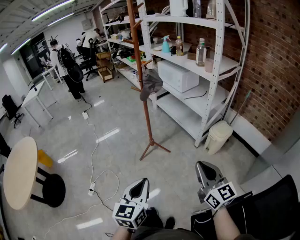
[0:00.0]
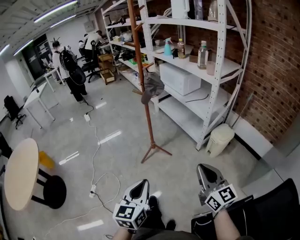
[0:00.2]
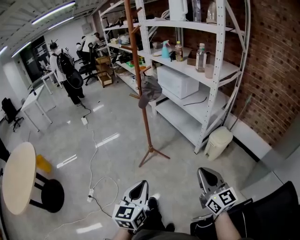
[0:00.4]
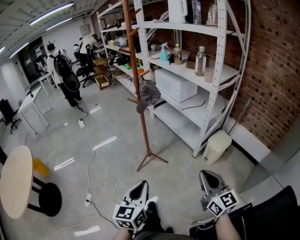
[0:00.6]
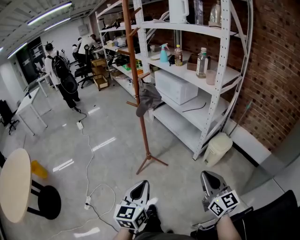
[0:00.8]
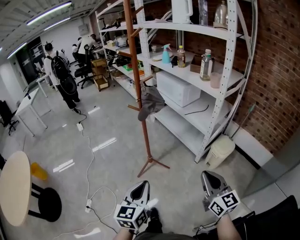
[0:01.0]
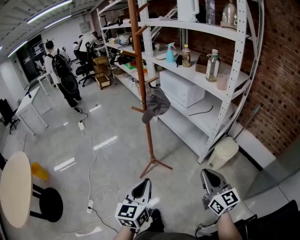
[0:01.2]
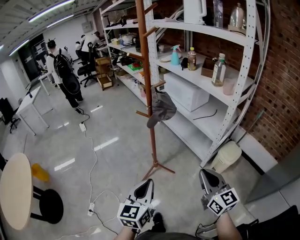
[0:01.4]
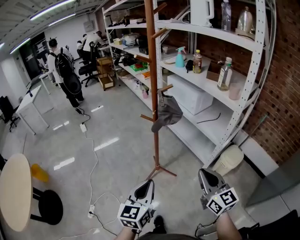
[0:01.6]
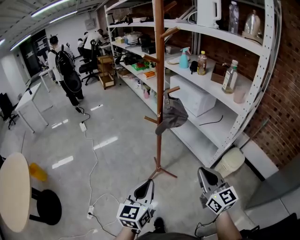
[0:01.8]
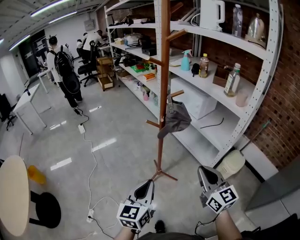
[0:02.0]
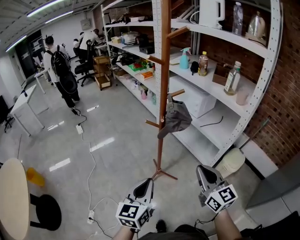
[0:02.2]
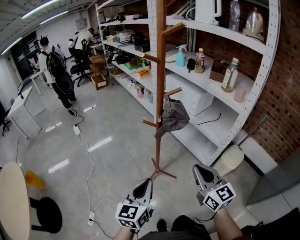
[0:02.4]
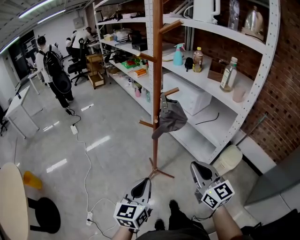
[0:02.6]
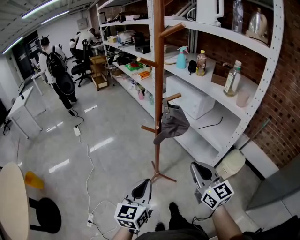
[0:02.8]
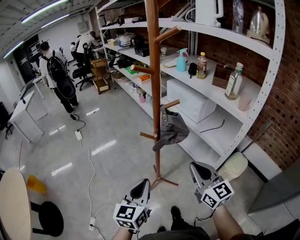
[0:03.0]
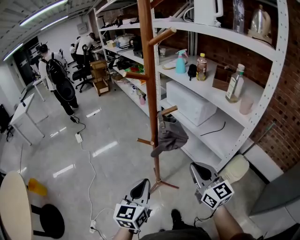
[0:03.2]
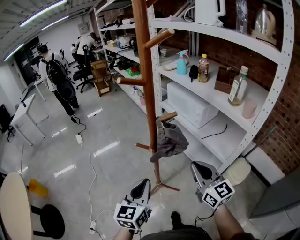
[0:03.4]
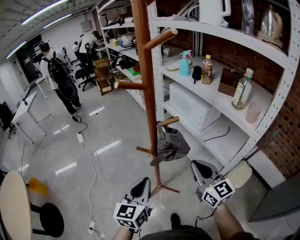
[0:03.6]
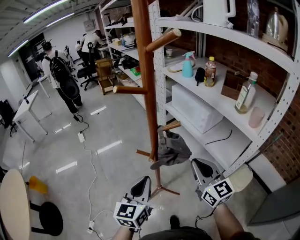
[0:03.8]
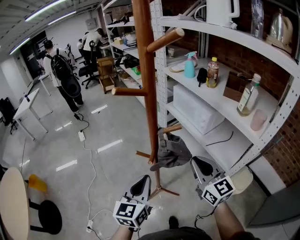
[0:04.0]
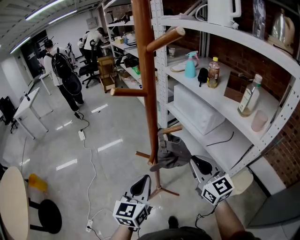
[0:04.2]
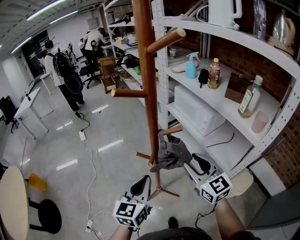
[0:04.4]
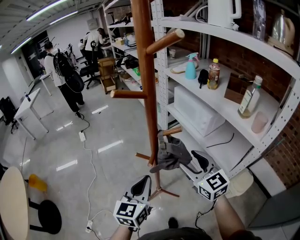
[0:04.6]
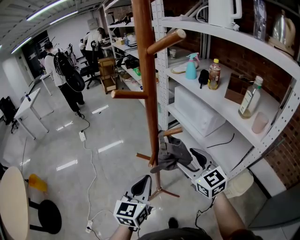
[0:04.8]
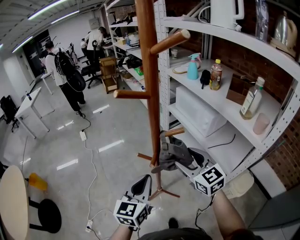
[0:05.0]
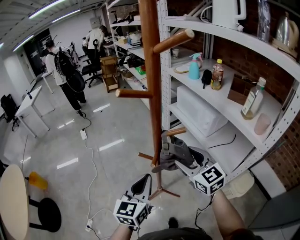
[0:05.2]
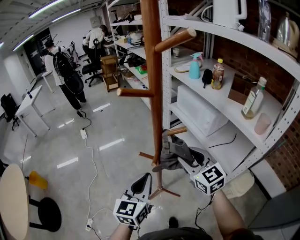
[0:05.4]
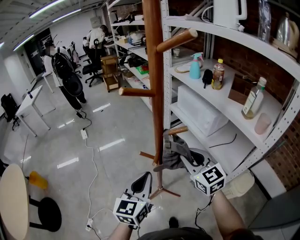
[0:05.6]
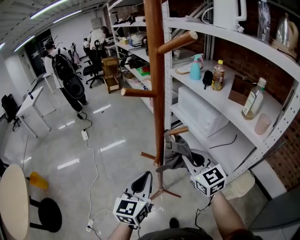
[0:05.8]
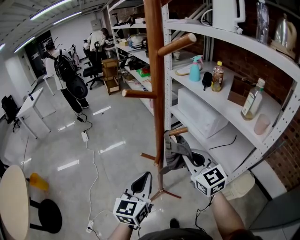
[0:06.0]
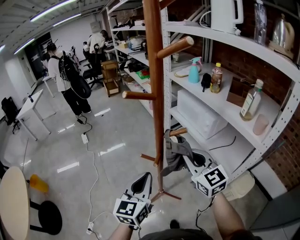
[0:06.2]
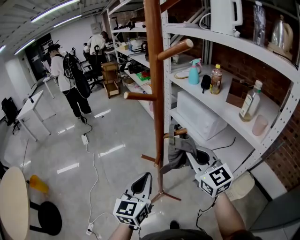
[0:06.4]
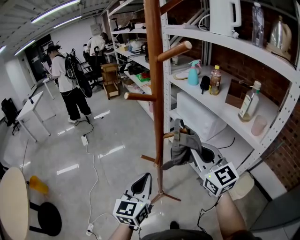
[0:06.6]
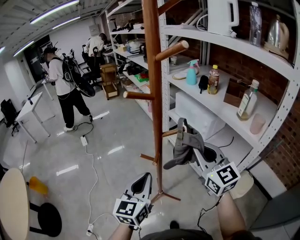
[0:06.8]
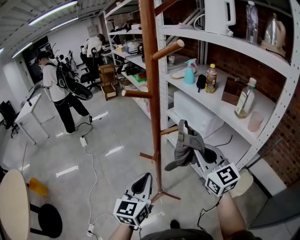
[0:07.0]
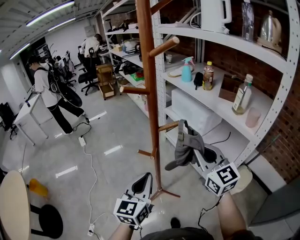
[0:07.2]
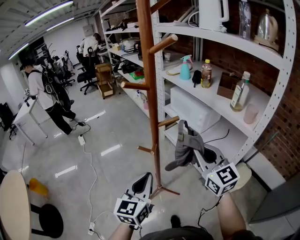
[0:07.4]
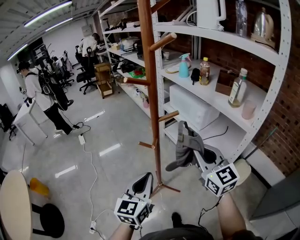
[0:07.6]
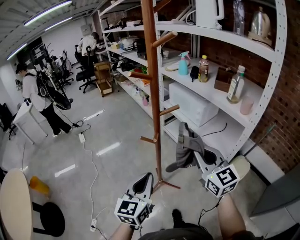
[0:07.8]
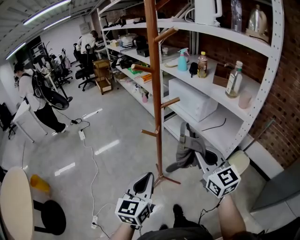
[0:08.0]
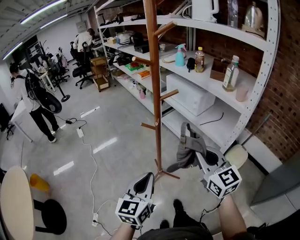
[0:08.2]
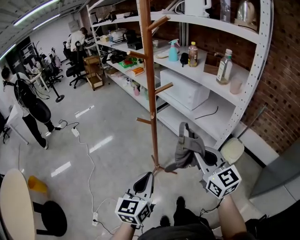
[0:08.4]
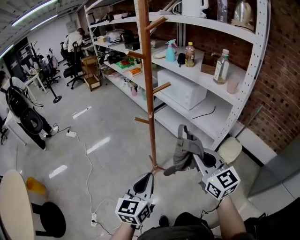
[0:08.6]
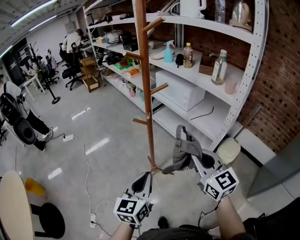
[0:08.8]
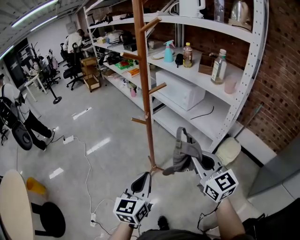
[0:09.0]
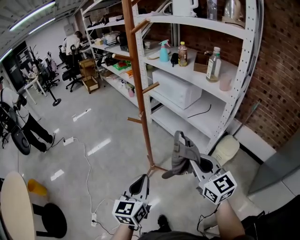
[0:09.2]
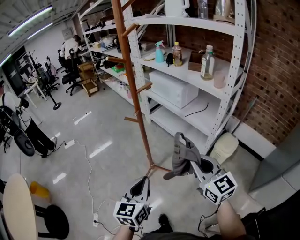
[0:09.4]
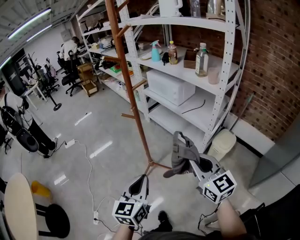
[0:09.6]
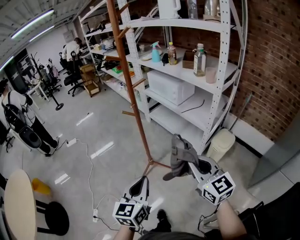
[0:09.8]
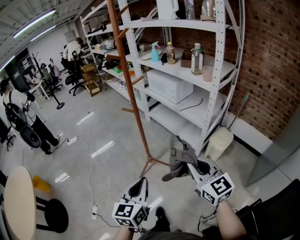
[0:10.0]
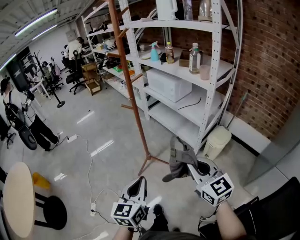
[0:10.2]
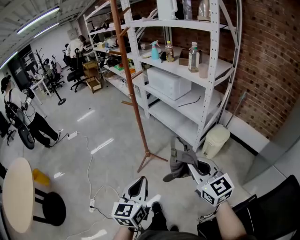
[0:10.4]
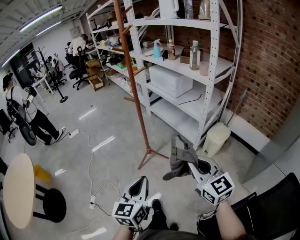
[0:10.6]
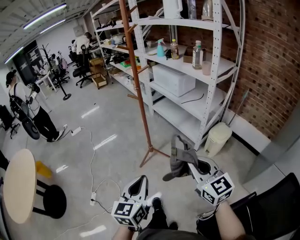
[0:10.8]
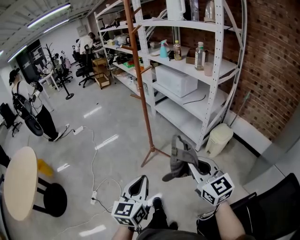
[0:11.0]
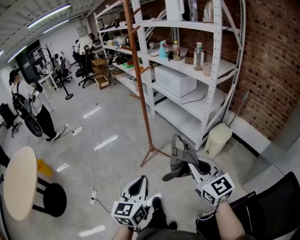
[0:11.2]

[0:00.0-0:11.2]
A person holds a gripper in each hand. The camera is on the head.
0:00.0 to 0:01.6: The two grippers go about 25 cm forward.
0:01.6 to 0:03.2: The two grippers go approximately 20 cm forward.
0:03.2 to 0:04.8: The two grippers go about 10 cm forward. The right gripper opens up.
0:04.8 to 0:06.4: The right gripper shifts some 5 cm upward, and closes its fingers.
0:06.4 to 0:08.0: Both grippers travel together backward, roughly 15 cm.
0:08.0 to 0:09.6: The grippers both shift backward by some 15 cm.
0:09.6 to 0:11.2: The two grippers go about 20 cm backward.

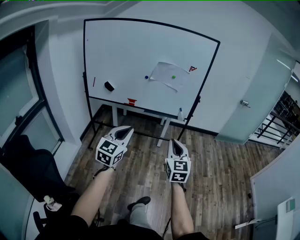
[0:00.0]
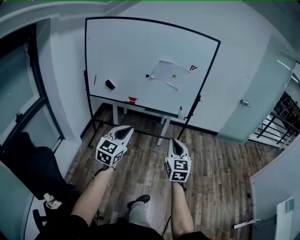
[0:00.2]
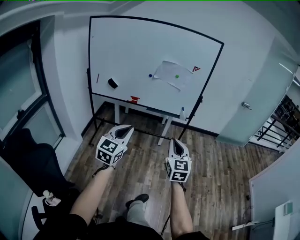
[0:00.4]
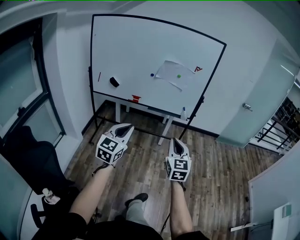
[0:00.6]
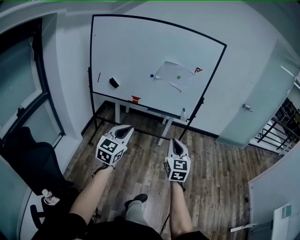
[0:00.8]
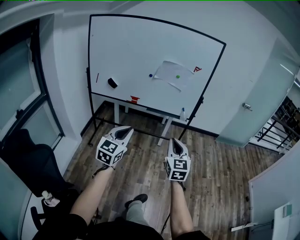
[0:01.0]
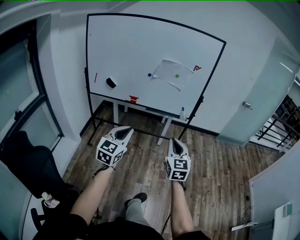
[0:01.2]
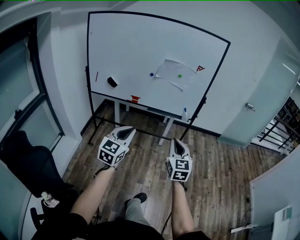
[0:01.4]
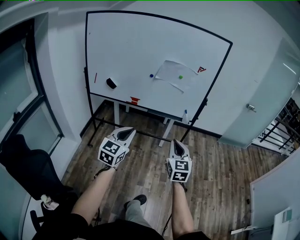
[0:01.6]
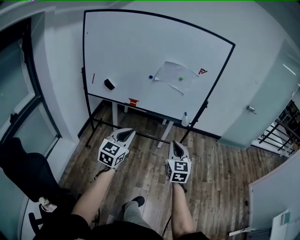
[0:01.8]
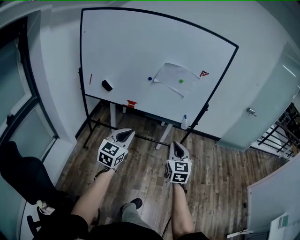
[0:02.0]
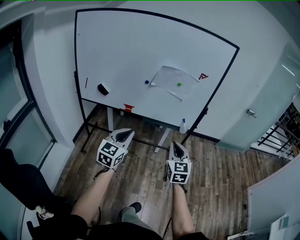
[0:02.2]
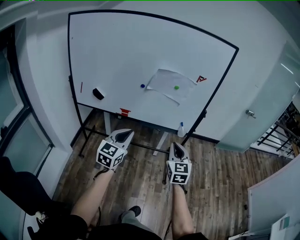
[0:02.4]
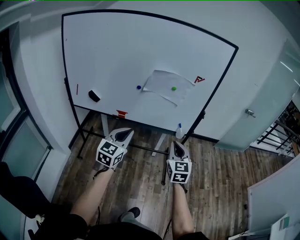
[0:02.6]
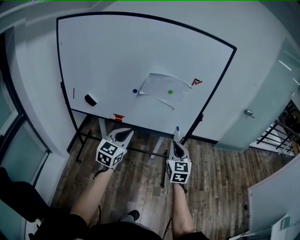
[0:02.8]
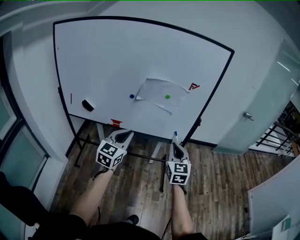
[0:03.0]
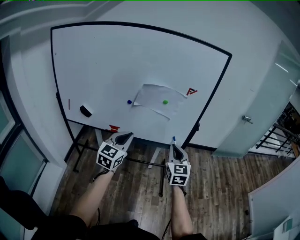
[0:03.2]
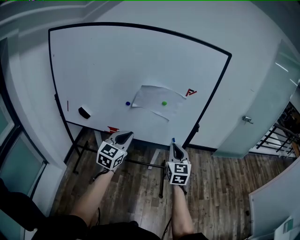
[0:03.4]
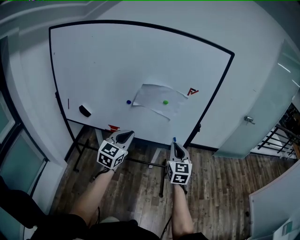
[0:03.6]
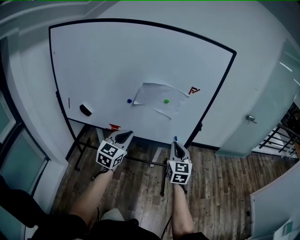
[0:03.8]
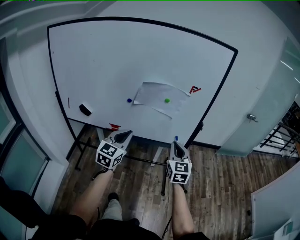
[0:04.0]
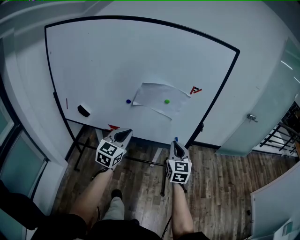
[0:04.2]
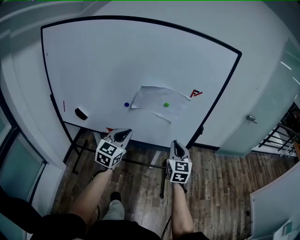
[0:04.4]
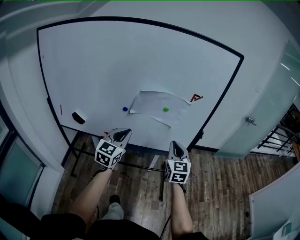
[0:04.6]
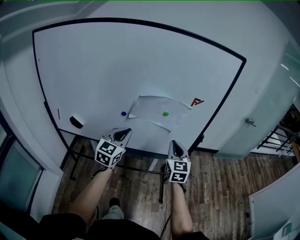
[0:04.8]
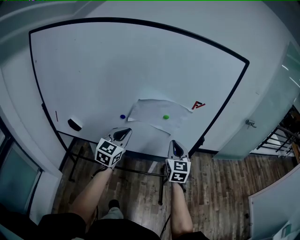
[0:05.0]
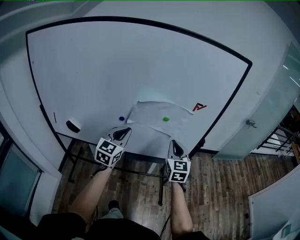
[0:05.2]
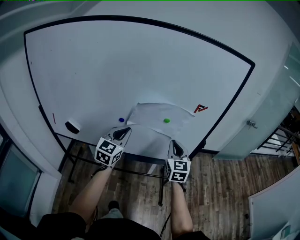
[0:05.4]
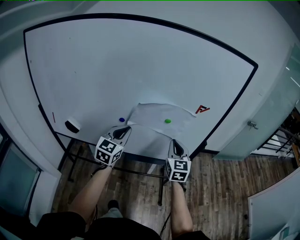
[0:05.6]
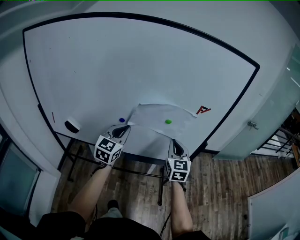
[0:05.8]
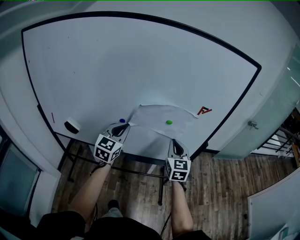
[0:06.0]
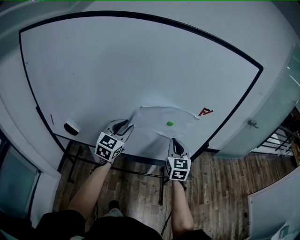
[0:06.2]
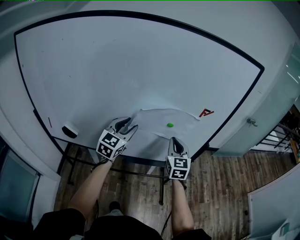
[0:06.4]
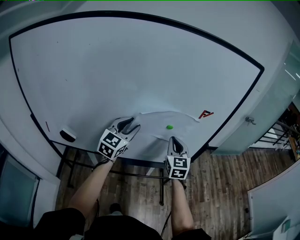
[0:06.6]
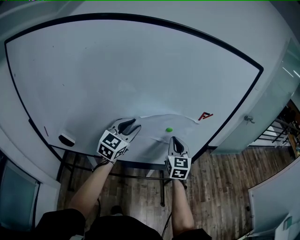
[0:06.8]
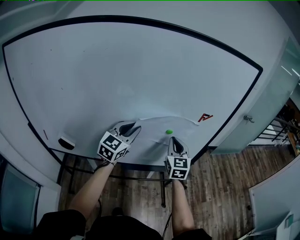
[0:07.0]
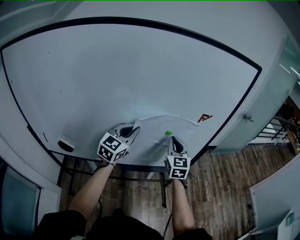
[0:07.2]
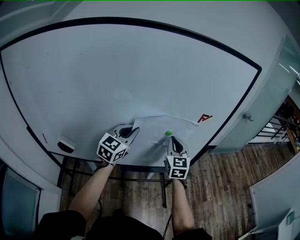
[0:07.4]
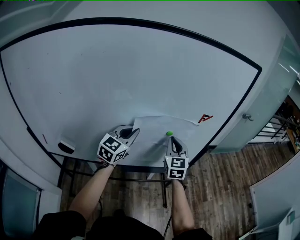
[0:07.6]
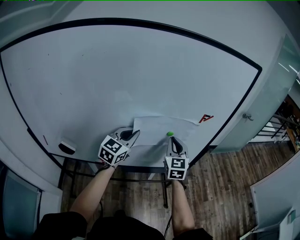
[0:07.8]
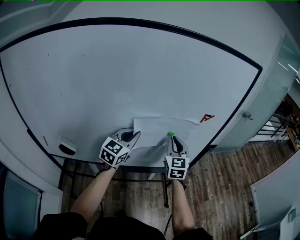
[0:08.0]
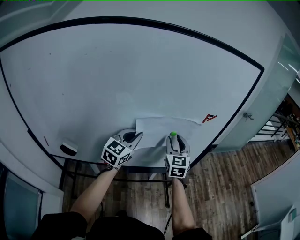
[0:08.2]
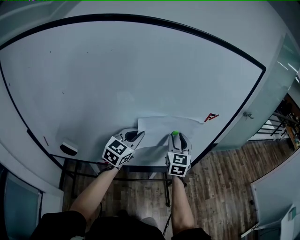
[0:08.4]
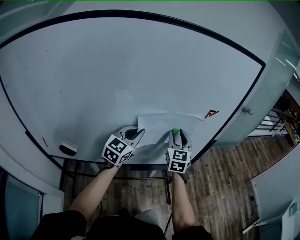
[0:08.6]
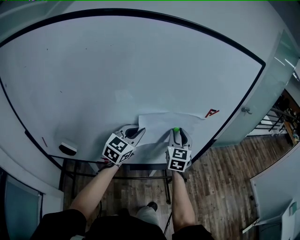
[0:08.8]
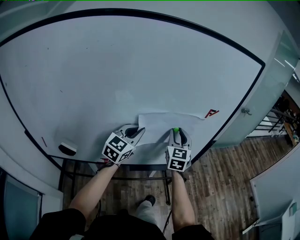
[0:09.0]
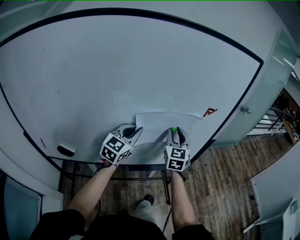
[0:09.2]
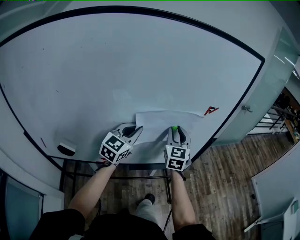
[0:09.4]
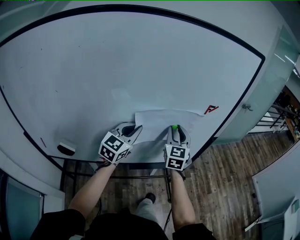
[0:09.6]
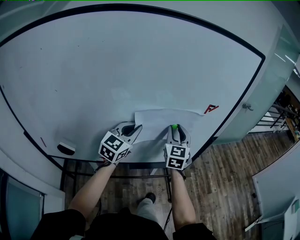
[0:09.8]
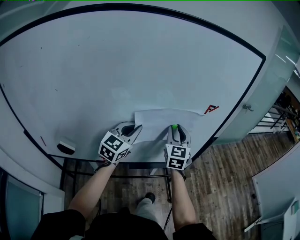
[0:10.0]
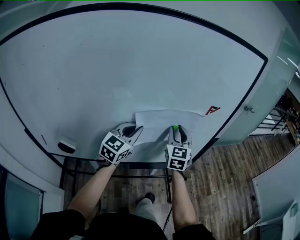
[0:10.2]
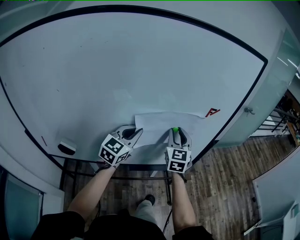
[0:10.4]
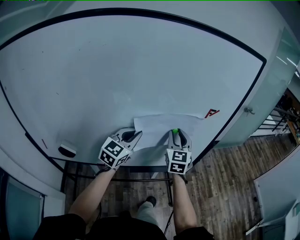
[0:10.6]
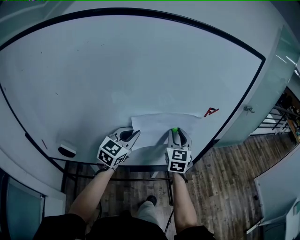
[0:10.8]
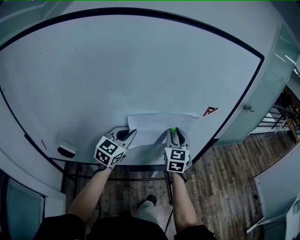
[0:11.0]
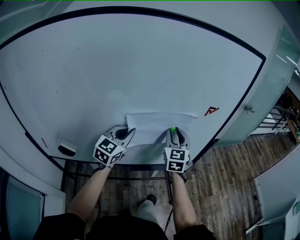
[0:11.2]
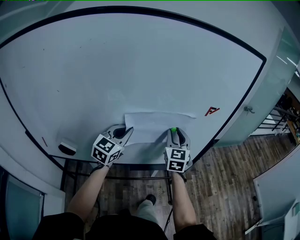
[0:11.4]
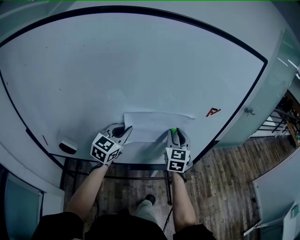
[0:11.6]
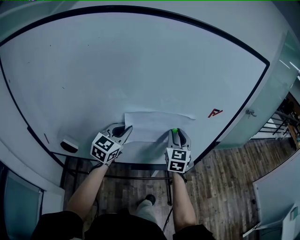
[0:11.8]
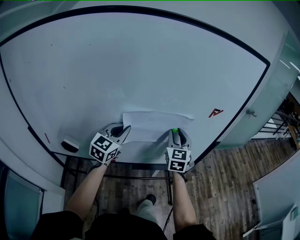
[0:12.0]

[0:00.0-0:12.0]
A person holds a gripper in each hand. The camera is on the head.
0:00.0 to 0:01.6: Both grippers travel together forward, roughly 10 cm.
0:01.6 to 0:03.0: The grippers both shift forward by roughly 25 cm.
0:03.0 to 0:04.4: The grippers both shift forward by about 10 cm.
0:04.4 to 0:06.0: Both grippers move forward, approximately 15 cm.
0:06.0 to 0:07.6: Both grippers travel together forward, approximately 5 cm. The left gripper opens and closes again.
0:07.6 to 0:09.0: The right gripper opens up.
0:09.0 to 0:10.4: Both grippers stay about where they are.
0:10.4 to 0:12.0: The left gripper shifts approximately 5 cm to the left.

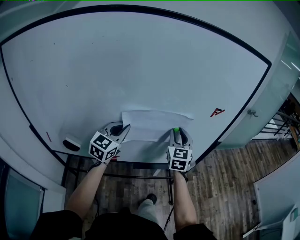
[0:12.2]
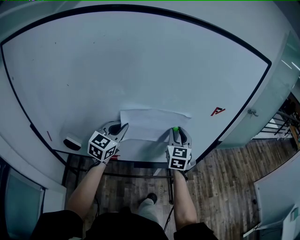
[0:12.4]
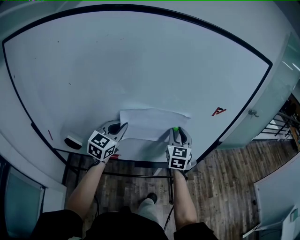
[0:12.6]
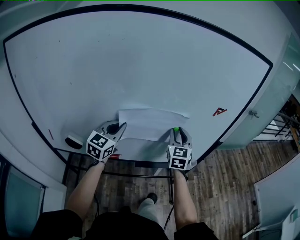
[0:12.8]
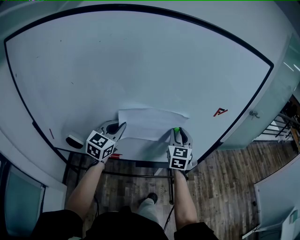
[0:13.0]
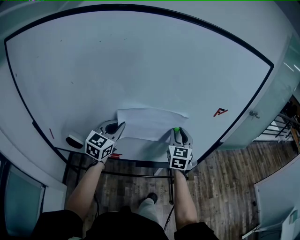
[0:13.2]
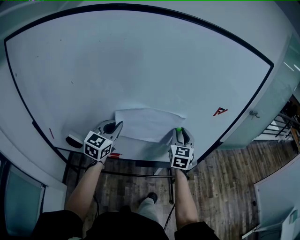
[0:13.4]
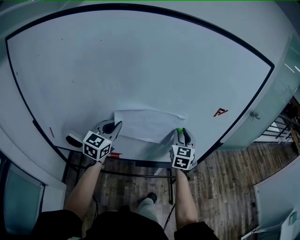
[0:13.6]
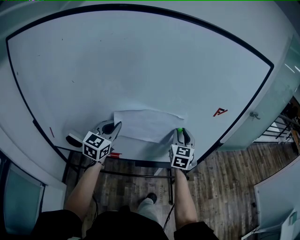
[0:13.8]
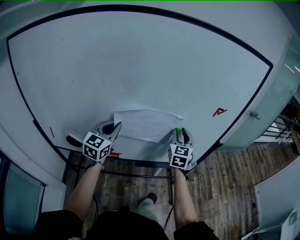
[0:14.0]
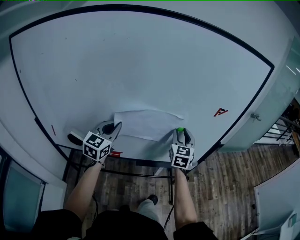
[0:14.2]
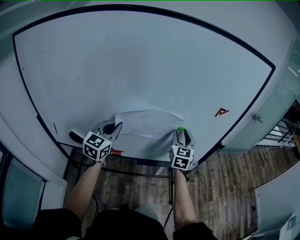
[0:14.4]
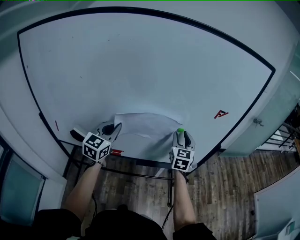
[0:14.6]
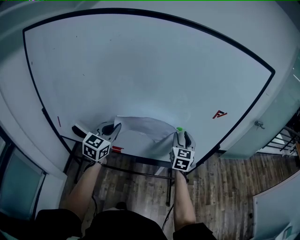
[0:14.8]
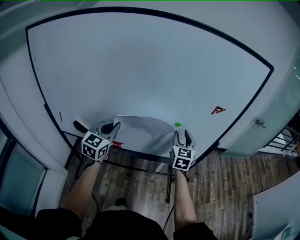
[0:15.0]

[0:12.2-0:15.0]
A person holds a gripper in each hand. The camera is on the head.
0:12.2 to 0:13.6: The left gripper shifts roughly 5 cm to the left.
0:13.6 to 0:15.0: The left gripper shifts roughly 5 cm backward.
